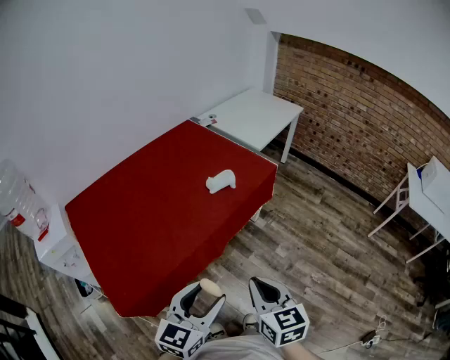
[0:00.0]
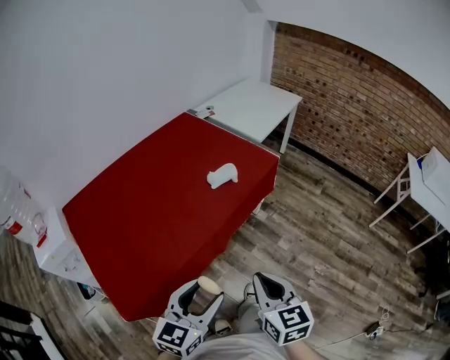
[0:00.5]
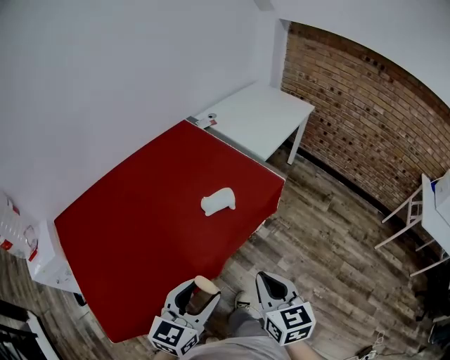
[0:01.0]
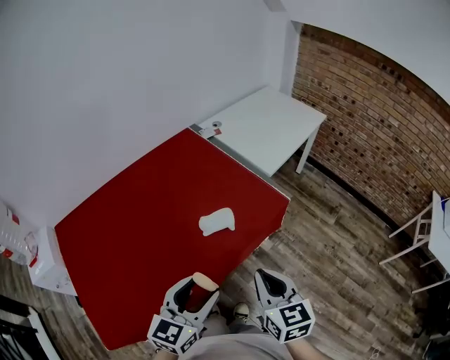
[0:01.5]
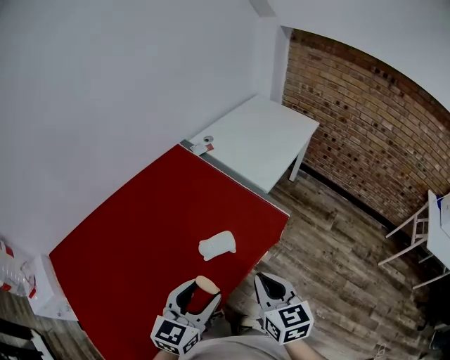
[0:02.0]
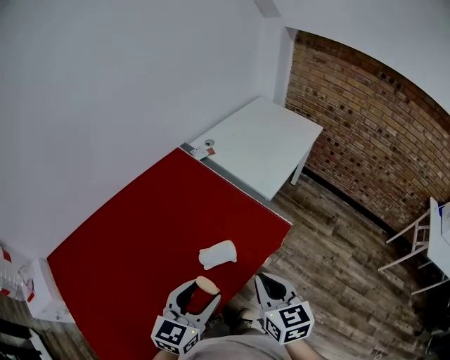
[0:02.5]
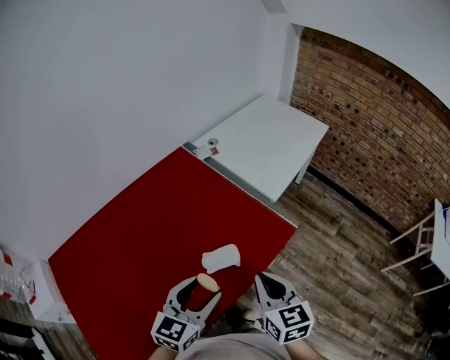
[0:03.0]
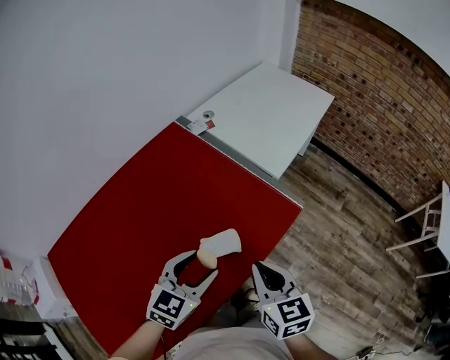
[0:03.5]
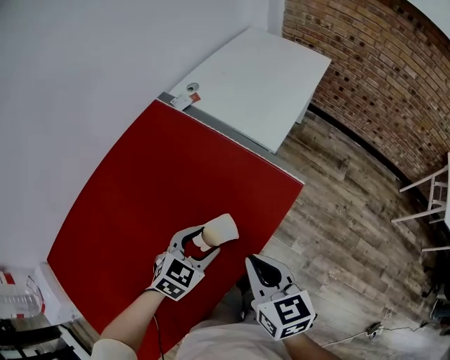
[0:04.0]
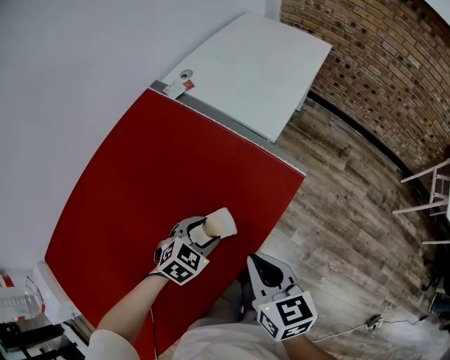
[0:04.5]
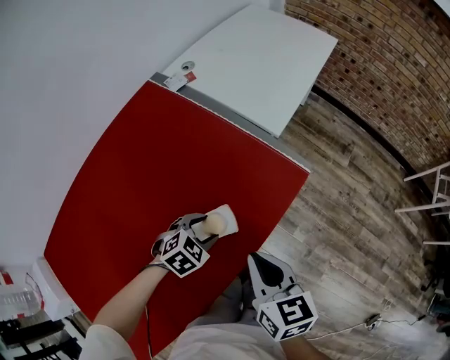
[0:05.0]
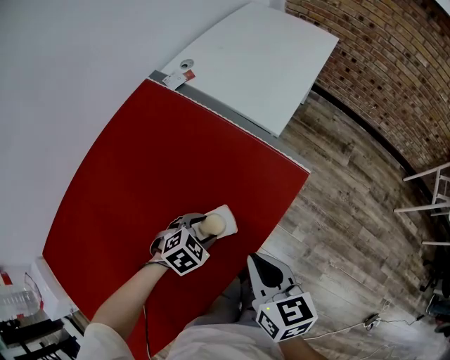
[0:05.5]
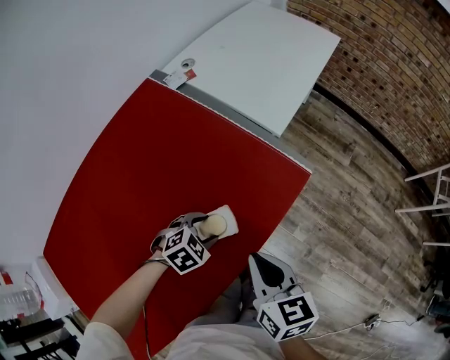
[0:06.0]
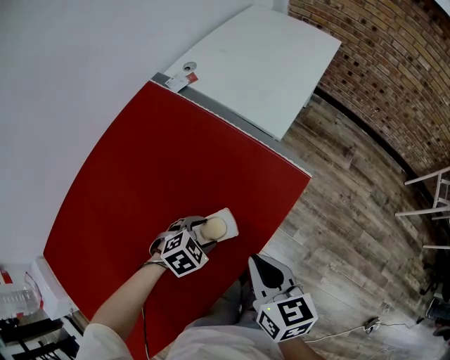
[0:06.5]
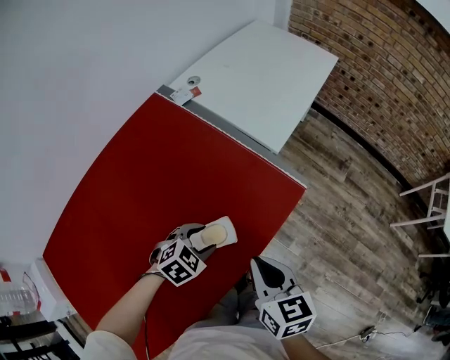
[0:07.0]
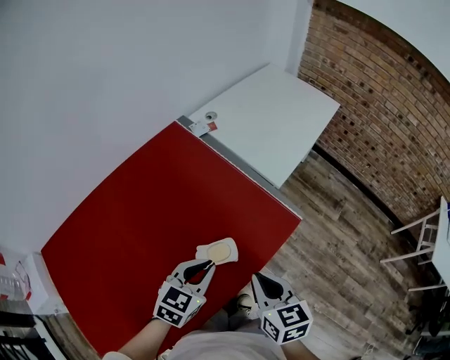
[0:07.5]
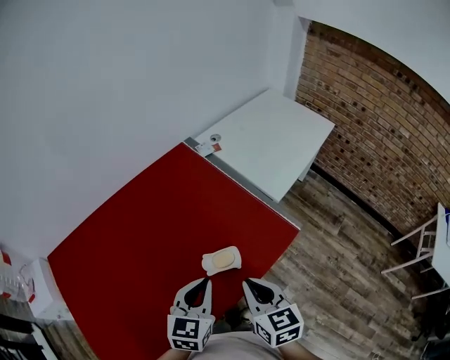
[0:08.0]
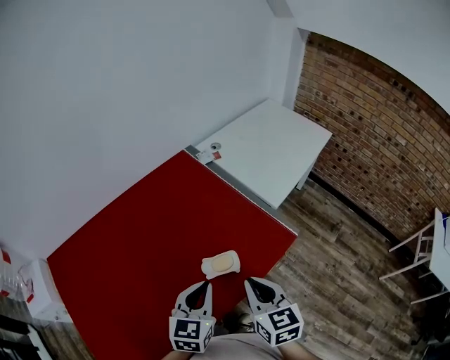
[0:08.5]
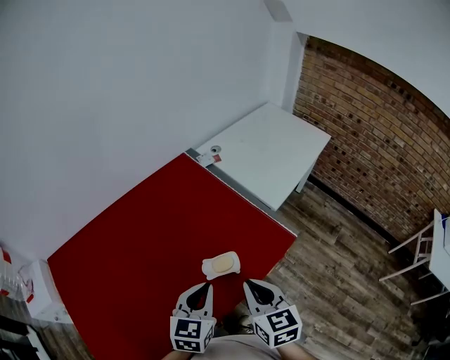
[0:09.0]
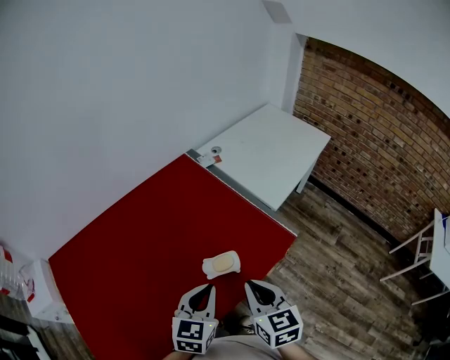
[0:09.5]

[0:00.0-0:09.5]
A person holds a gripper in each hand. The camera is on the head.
0:00.0 to 0:02.0: The two grippers travel together, forward, roughly 40 cm.
0:02.0 to 0:04.0: The left gripper is displaced forward and downward by approximately 25 cm, and swivels approximately 40 degrees. Meanwhile the right gripper is displaced forward and downward by approximately 15 cm.
0:04.0 to 0:05.5: The left gripper heads downward, covering roughly 10 cm, and turns by roughly 20 degrees.
0:05.5 to 0:07.5: The right gripper changes place by about 5 cm. The left gripper travels upward by about 20 cm, angles its fingers upward, by approximately 30 degrees, and closes its fingers.
0:07.5 to 0:09.5: The right gripper moves upward, some 5 cm, while the left gripper is displaced backward and upward by approximately 10 cm, and rotates some 20 degrees.

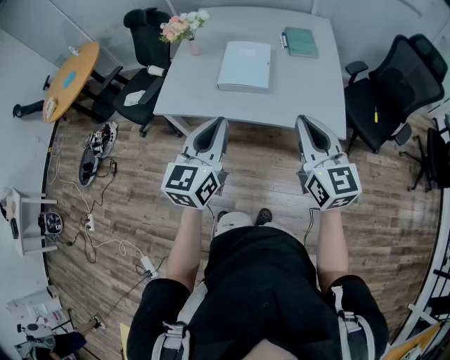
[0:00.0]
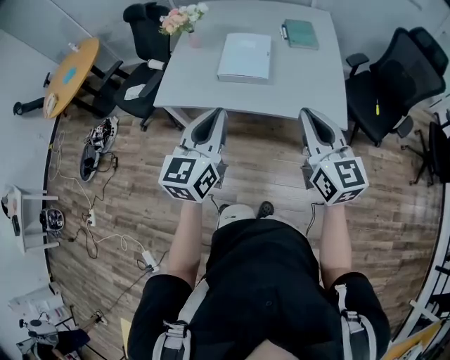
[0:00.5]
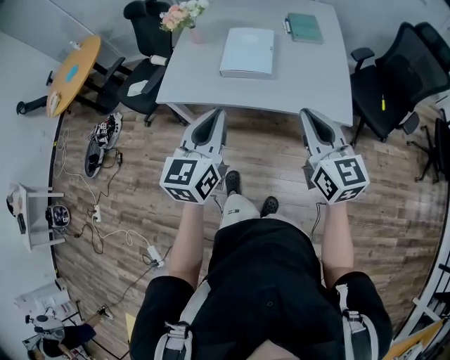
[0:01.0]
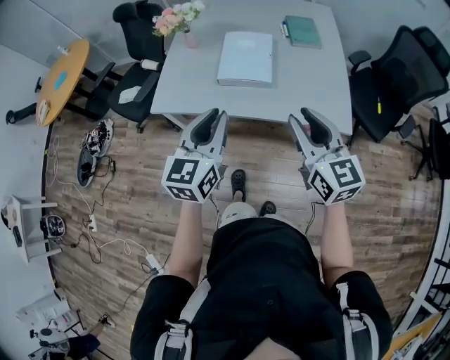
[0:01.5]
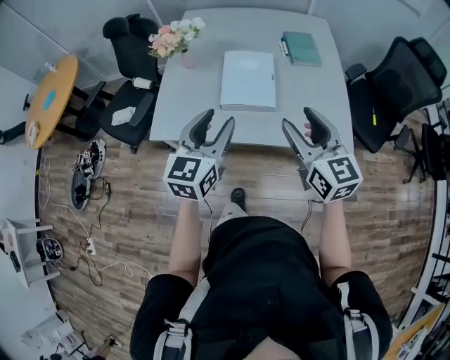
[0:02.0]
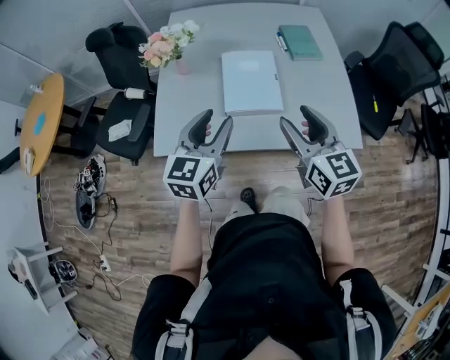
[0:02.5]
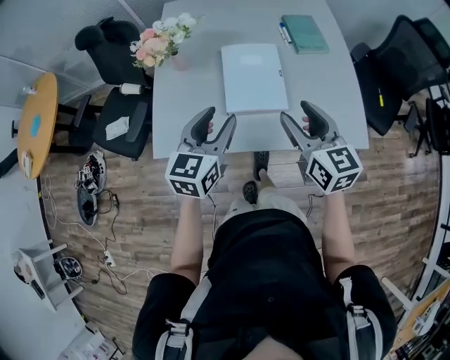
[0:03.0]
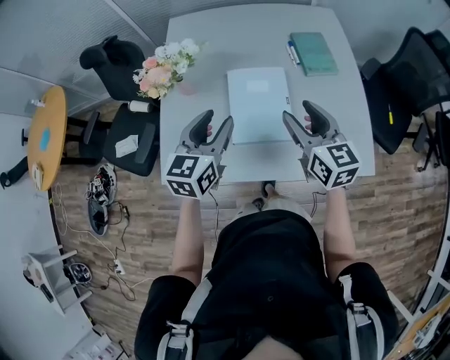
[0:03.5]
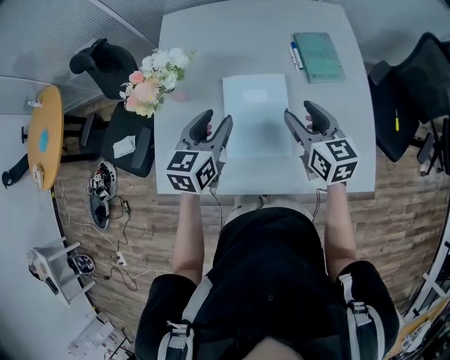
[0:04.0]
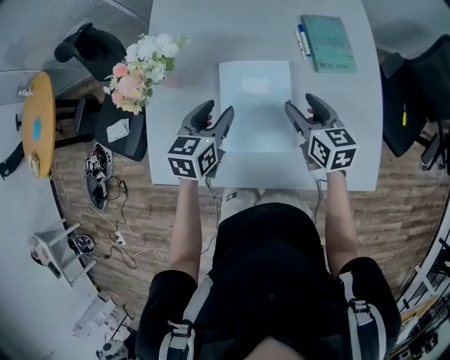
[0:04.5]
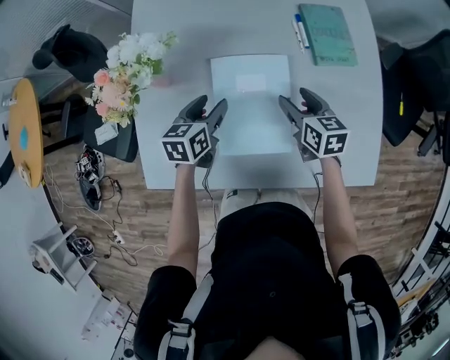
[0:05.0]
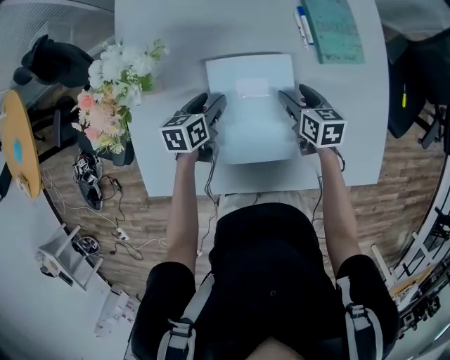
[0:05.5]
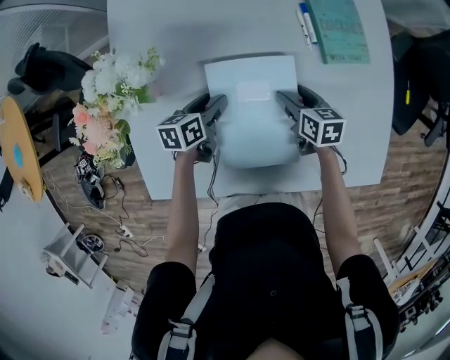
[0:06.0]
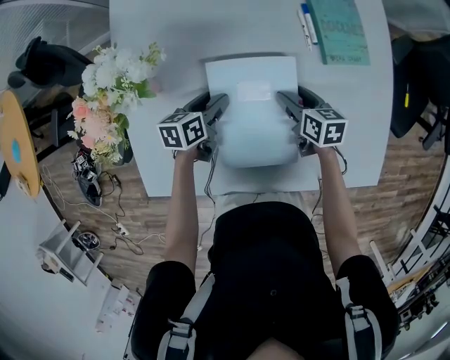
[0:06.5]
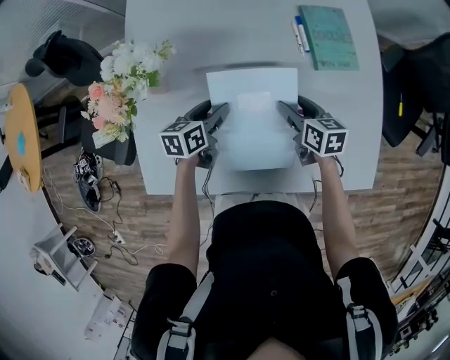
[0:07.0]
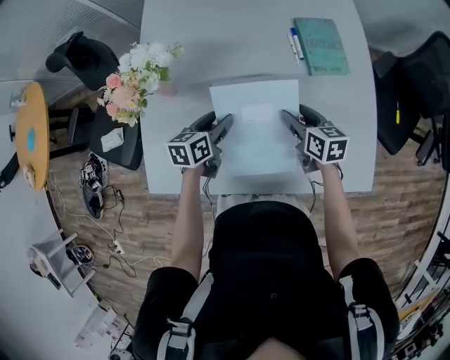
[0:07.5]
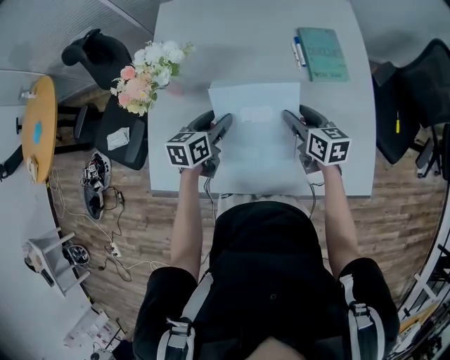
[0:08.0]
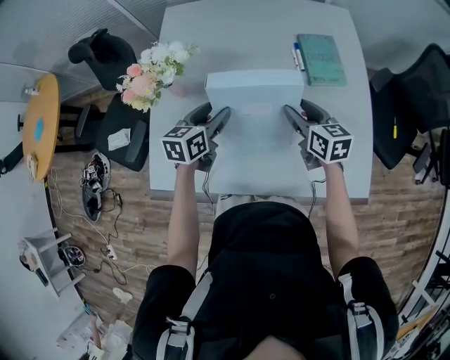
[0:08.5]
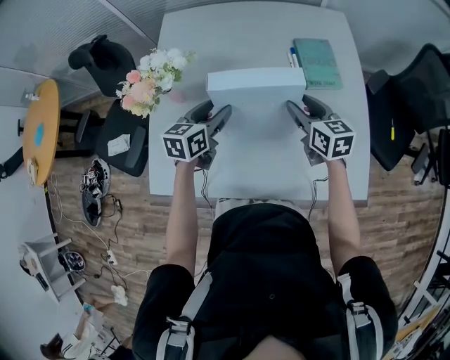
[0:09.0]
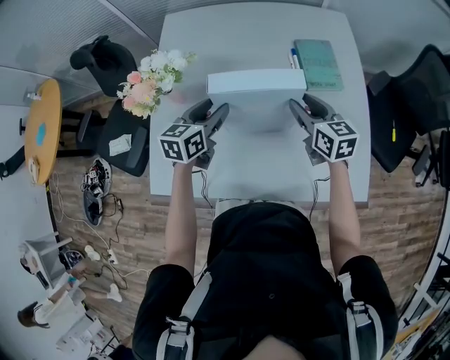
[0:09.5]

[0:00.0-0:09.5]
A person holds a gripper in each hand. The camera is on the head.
0:00.0 to 0:02.0: The grippers both shift forward and to the left by about 20 cm. The right gripper opens. The left gripper opens its fingers.
0:02.0 to 0:04.0: The two grippers go about 35 cm forward.
0:04.0 to 0:05.5: Both grippers travel together downward and forward, some 30 cm. The right gripper changes its angle by about 30 degrees. The left gripper swivels about 30 degrees.
0:05.5 to 0:07.5: Both grippers travel together upward and backward, approximately 10 cm.
0:07.5 to 0:09.5: Both grippers travel together upward, about 10 cm.

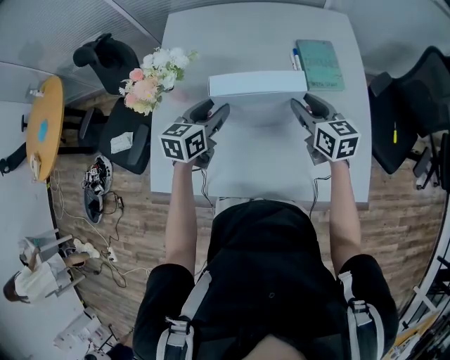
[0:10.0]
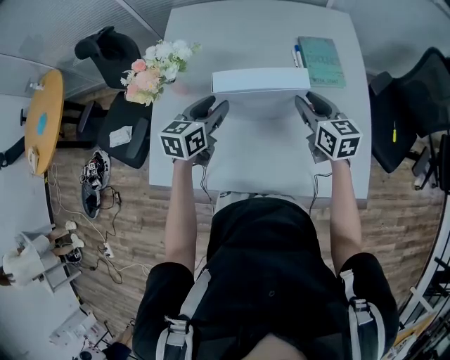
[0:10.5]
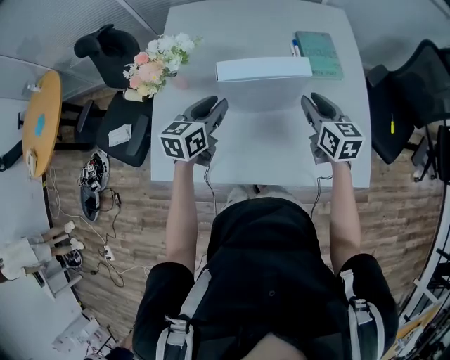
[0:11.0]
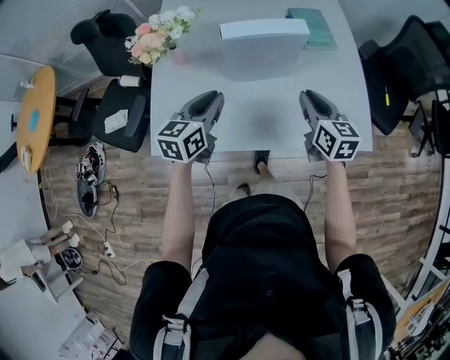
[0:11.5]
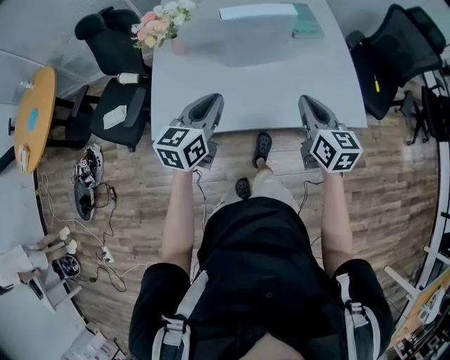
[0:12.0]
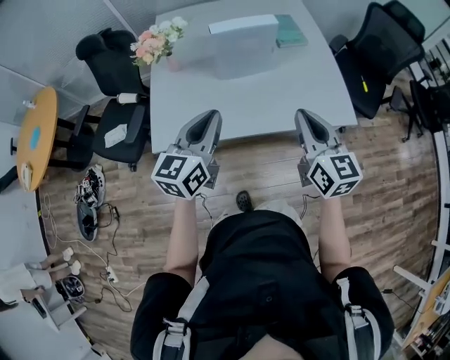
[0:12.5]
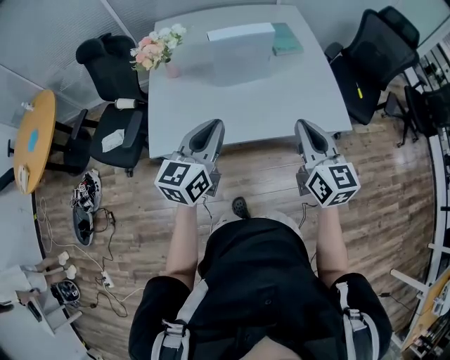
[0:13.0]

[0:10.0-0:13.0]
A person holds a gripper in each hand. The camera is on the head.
0:10.0 to 0:11.5: Both grippers travel together backward, roughly 20 cm. The right gripper closes up, while the left gripper closes its fingers.
0:11.5 to 0:13.0: Both grippers move backward and upward, roughly 25 cm.

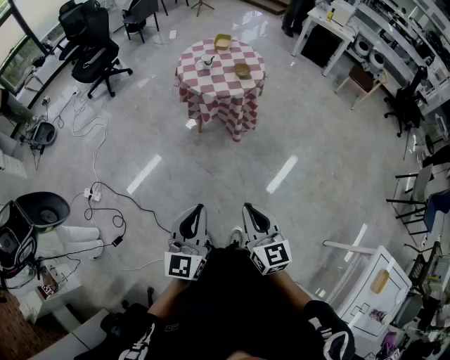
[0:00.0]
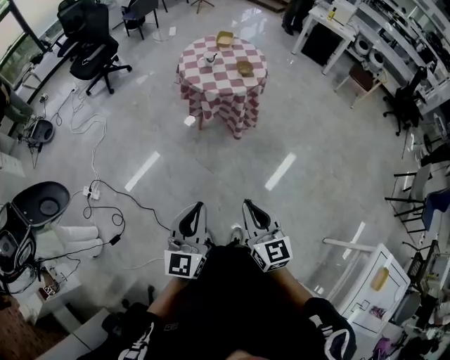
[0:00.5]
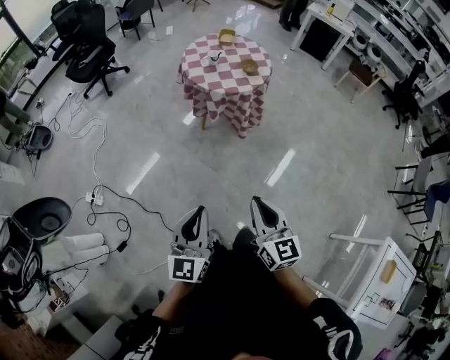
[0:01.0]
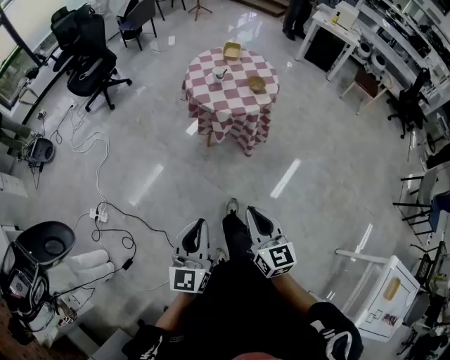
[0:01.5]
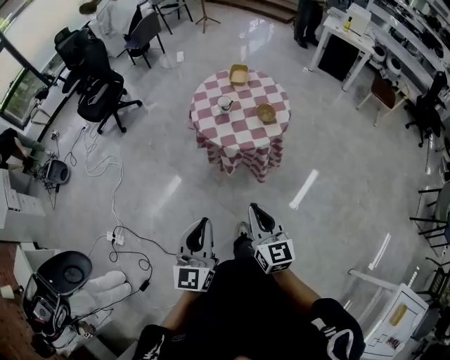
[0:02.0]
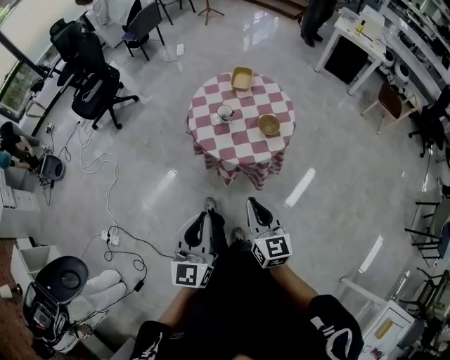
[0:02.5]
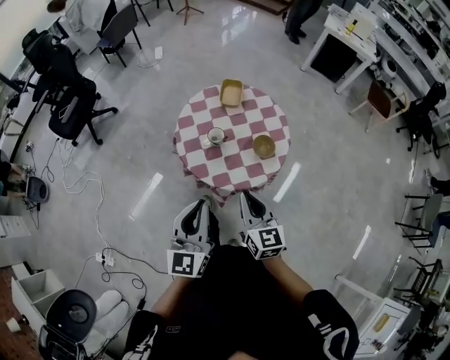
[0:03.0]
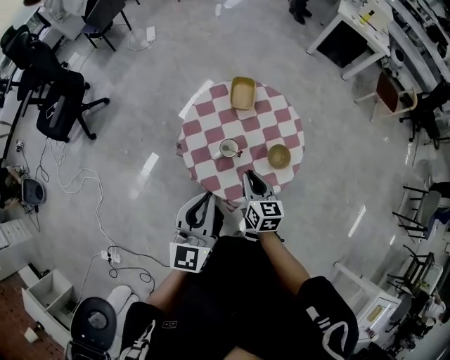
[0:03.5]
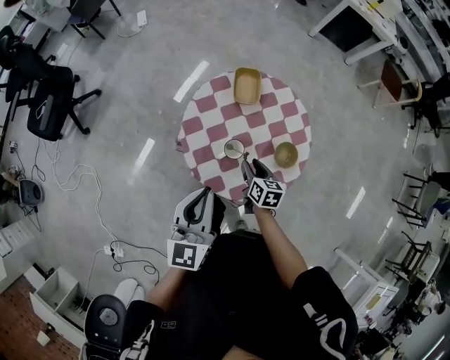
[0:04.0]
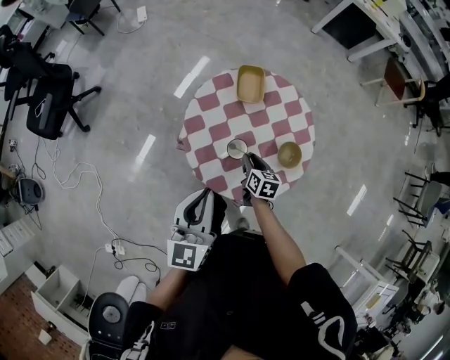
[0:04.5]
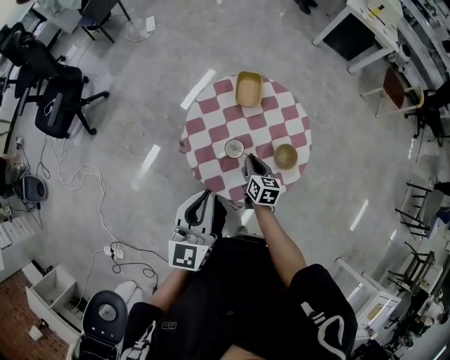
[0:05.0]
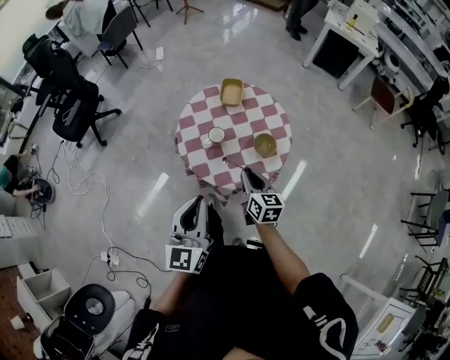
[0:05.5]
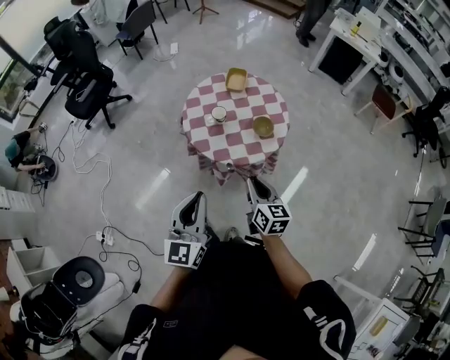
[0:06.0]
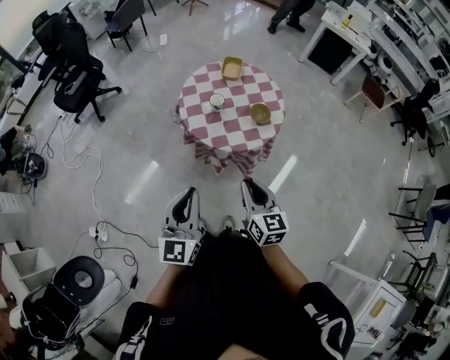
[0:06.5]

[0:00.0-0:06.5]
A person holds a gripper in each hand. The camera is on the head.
0:00.0 to 0:02.0: Both grippers move forward, roughly 35 cm.
0:02.0 to 0:04.5: The two grippers travel together, forward, approximately 60 cm. The right gripper is displaced downward by some 30 cm, points its fingers some 40 degrees further downward, and opens. The left gripper changes its angle by about 20 degrees.
0:04.5 to 0:06.5: The right gripper is displaced backward and upward by about 50 cm, and changes its angle by some 40 degrees; the left gripper heads backward, covering roughly 40 cm.
